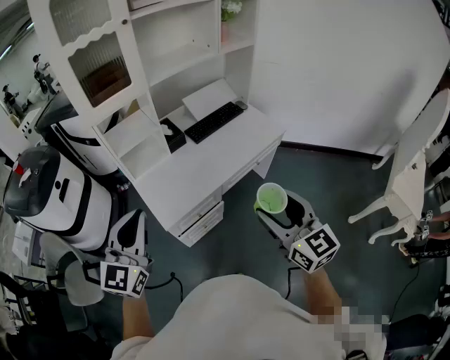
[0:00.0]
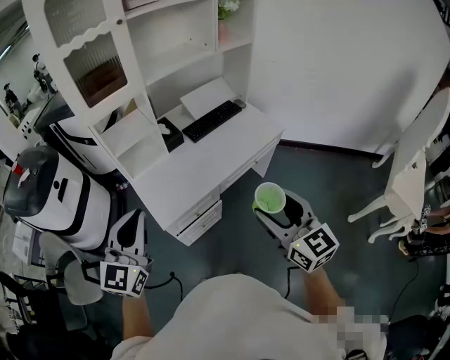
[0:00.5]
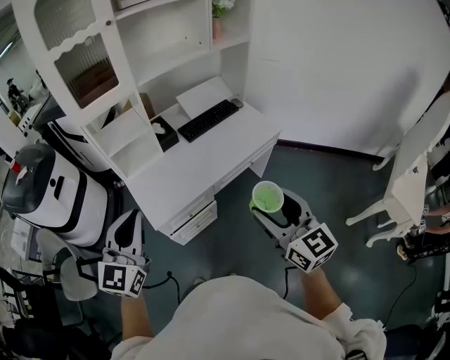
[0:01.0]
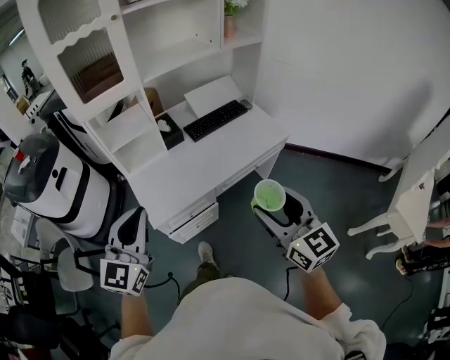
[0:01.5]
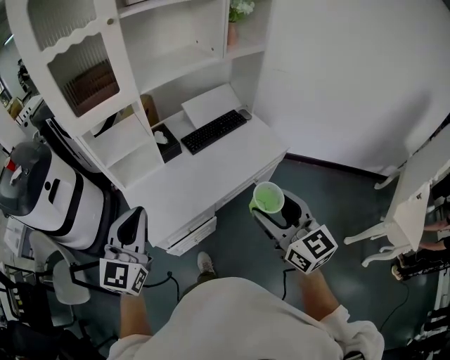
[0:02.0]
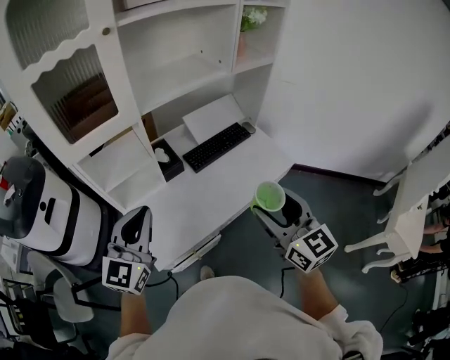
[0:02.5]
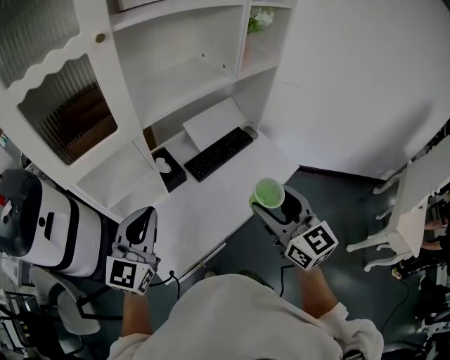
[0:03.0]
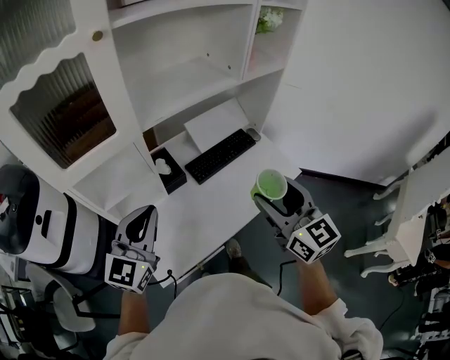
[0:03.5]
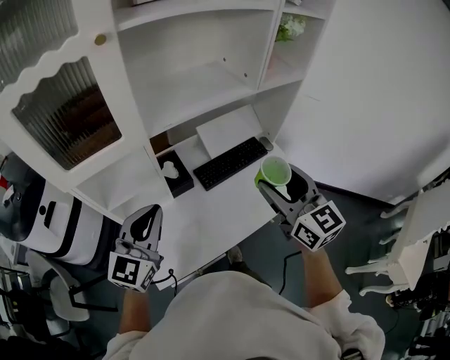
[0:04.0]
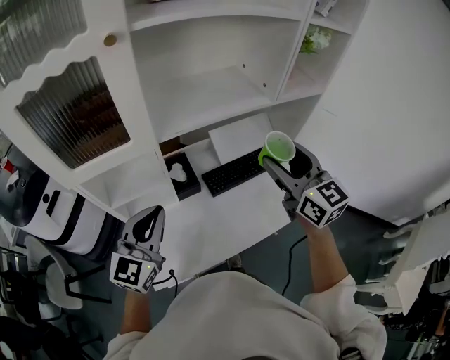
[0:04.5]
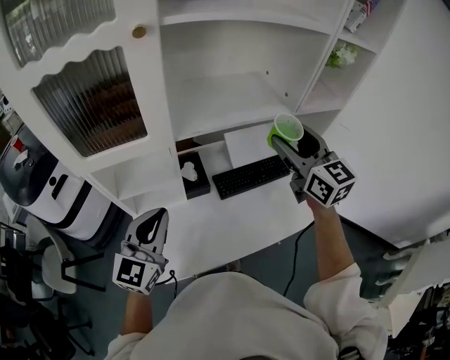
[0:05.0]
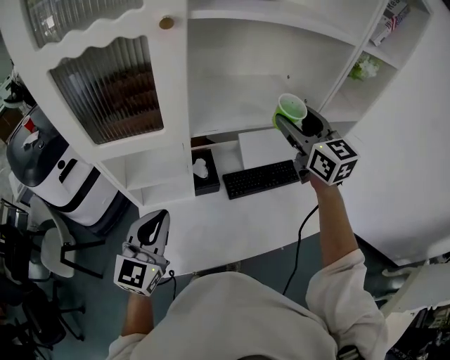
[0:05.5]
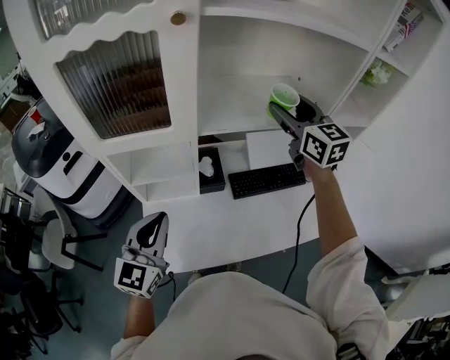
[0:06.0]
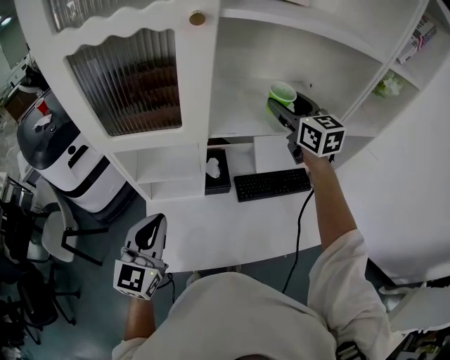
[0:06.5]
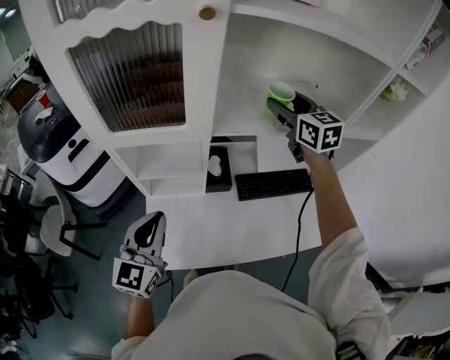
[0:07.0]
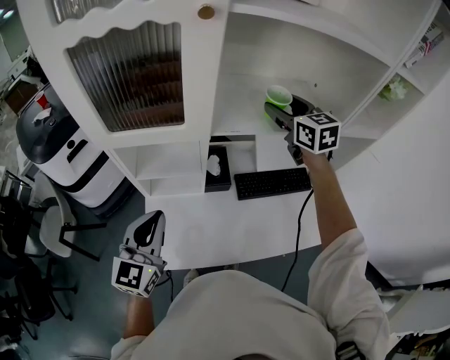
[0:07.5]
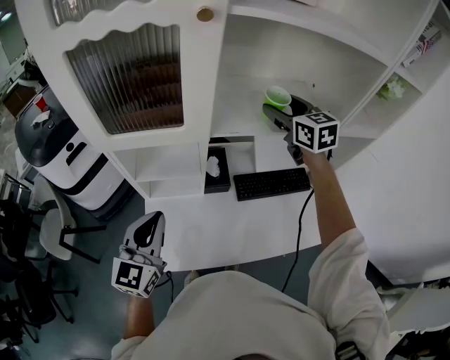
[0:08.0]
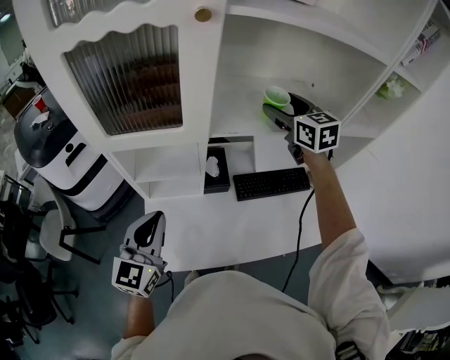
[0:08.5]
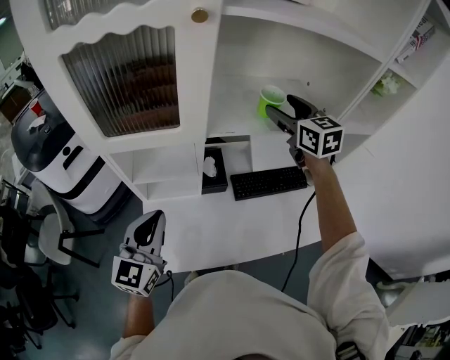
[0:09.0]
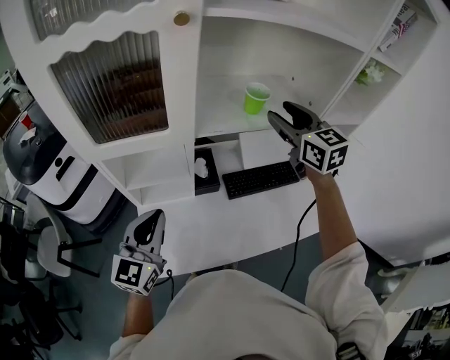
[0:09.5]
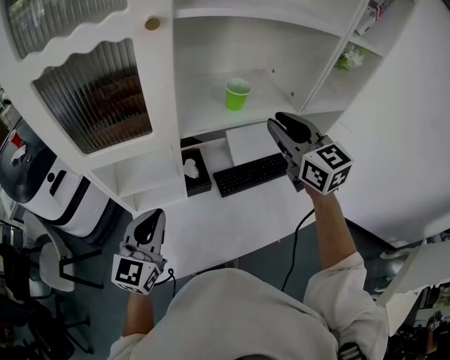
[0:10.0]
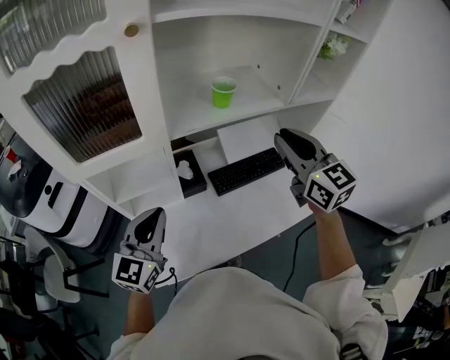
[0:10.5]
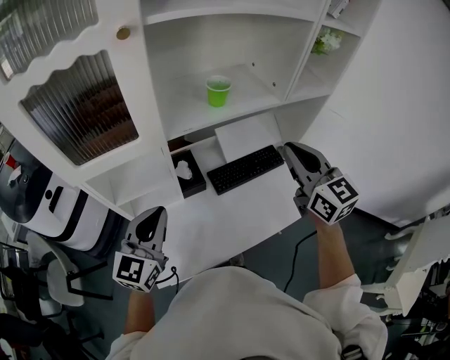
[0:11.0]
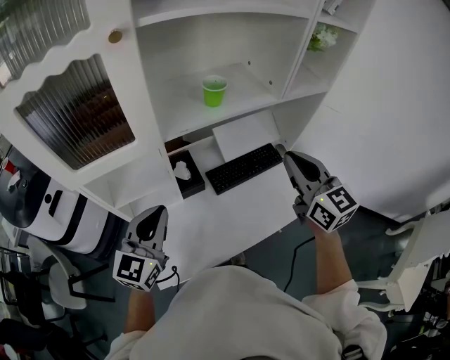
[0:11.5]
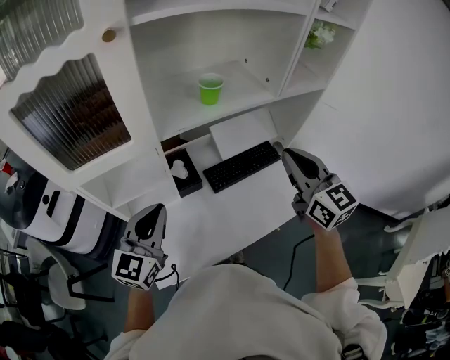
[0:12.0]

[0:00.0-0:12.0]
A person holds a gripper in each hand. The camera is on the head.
0:00.0 to 0:02.0: The grippers both shift forward and to the right by about 15 cm.
0:02.0 to 0:04.0: Both grippers move forward, about 30 cm.
0:04.0 to 0:06.0: The right gripper goes approximately 30 cm forward; the left gripper is displaced to the left by approximately 5 cm, and changes its angle by approximately 20 degrees.
0:06.0 to 0:08.0: The right gripper is displaced forward and downward by about 10 cm.
0:08.0 to 0:10.0: The right gripper moves backward, roughly 15 cm, and closes.
0:10.0 to 0:12.0: The right gripper goes approximately 10 cm backward and to the right.

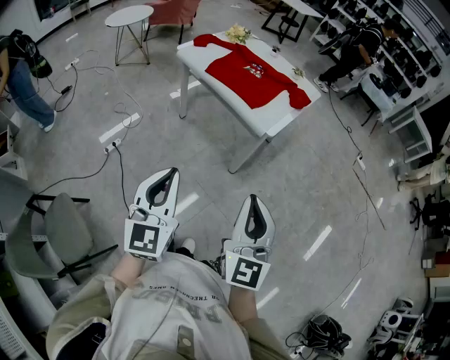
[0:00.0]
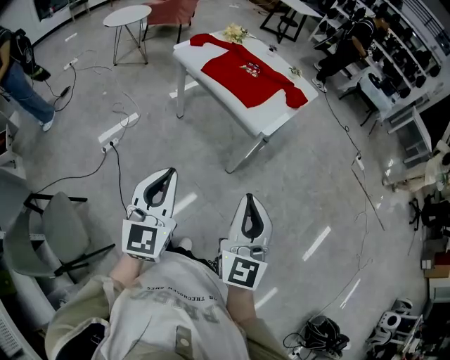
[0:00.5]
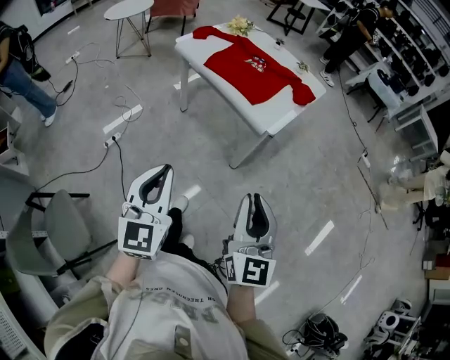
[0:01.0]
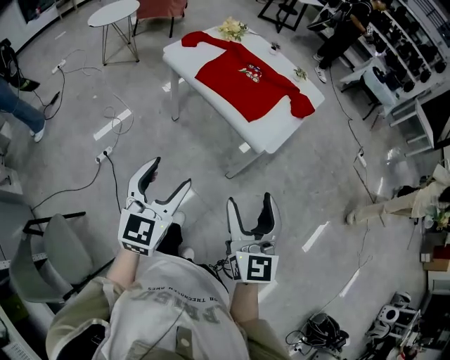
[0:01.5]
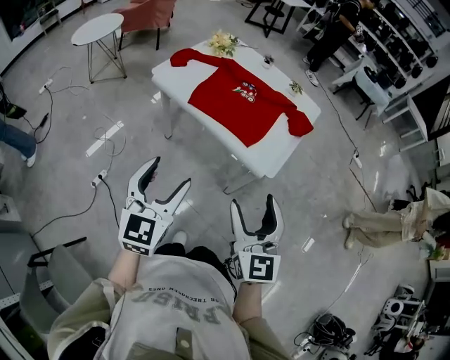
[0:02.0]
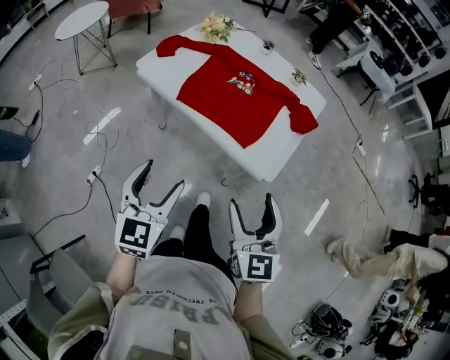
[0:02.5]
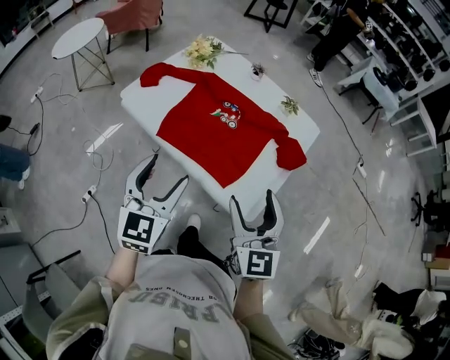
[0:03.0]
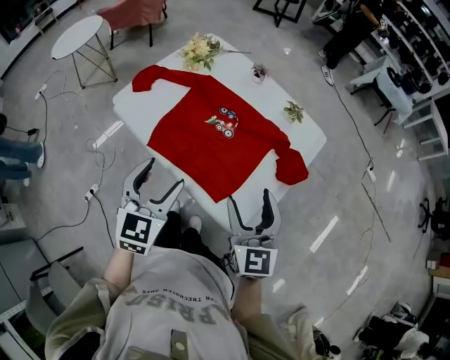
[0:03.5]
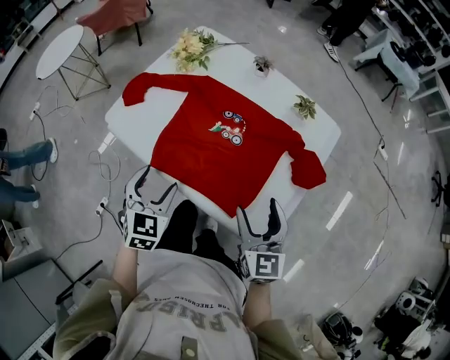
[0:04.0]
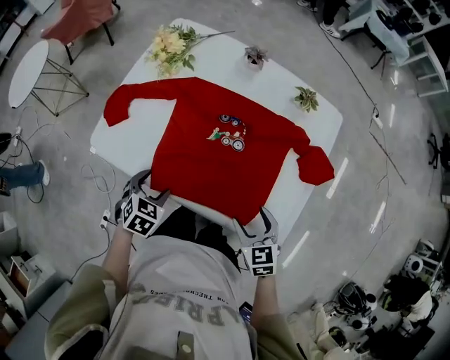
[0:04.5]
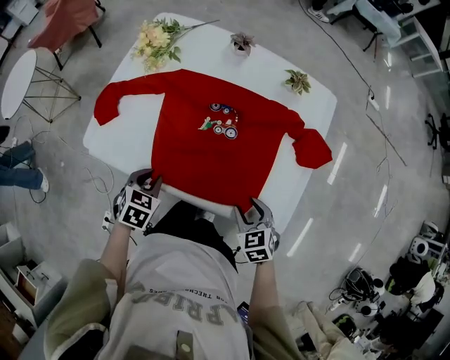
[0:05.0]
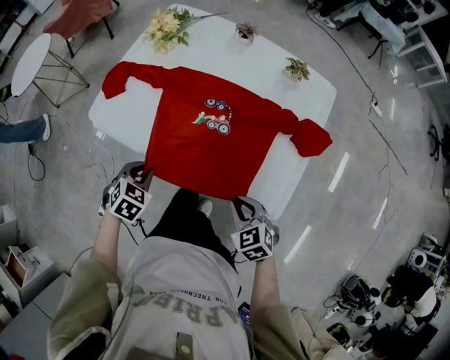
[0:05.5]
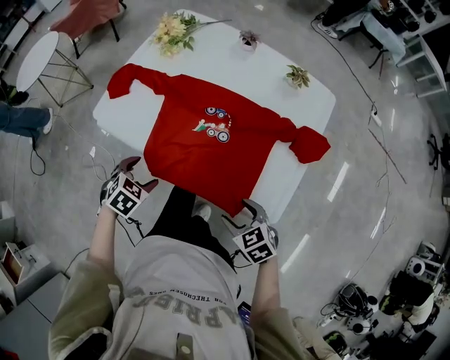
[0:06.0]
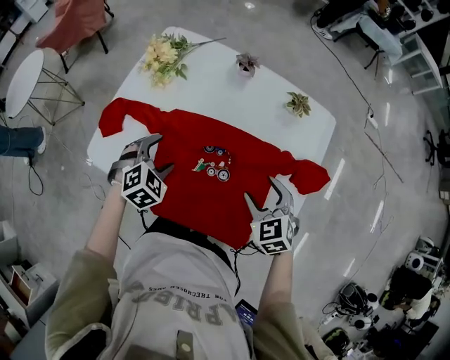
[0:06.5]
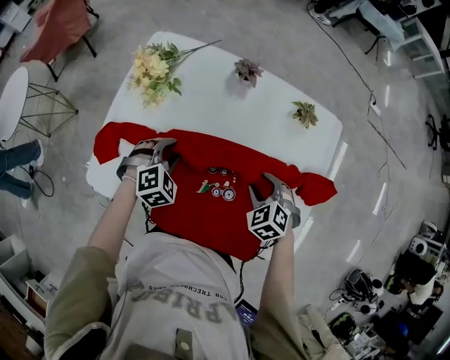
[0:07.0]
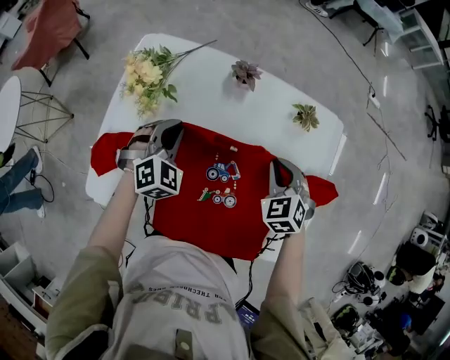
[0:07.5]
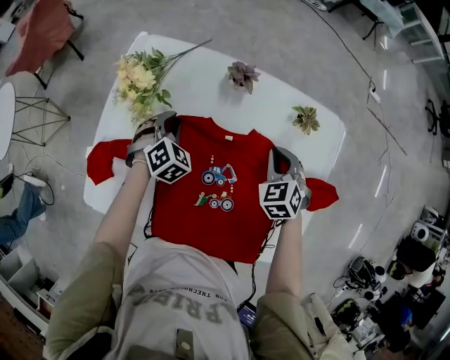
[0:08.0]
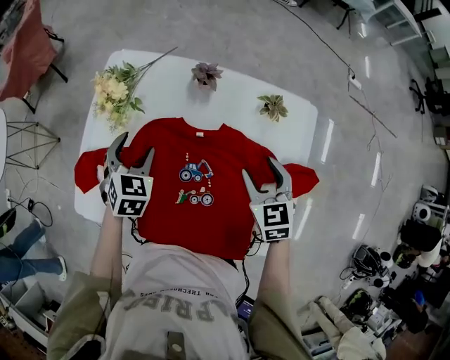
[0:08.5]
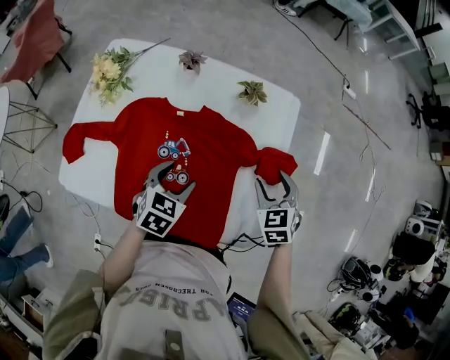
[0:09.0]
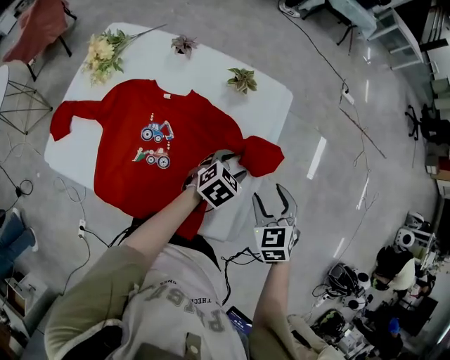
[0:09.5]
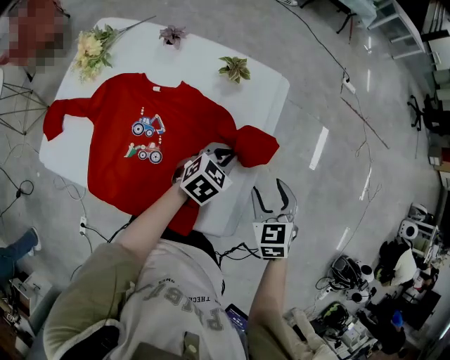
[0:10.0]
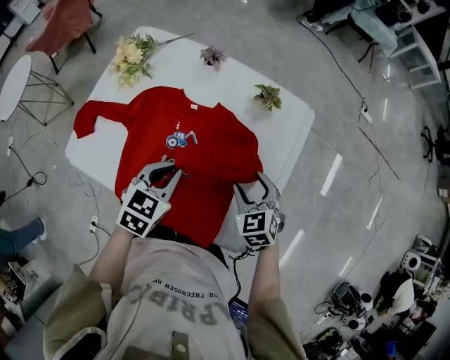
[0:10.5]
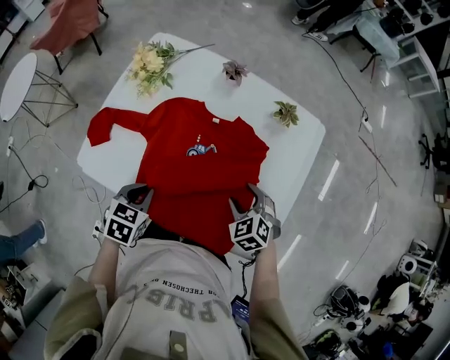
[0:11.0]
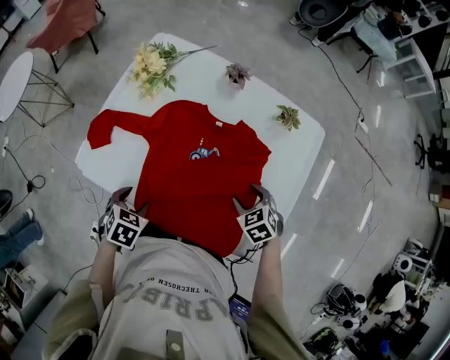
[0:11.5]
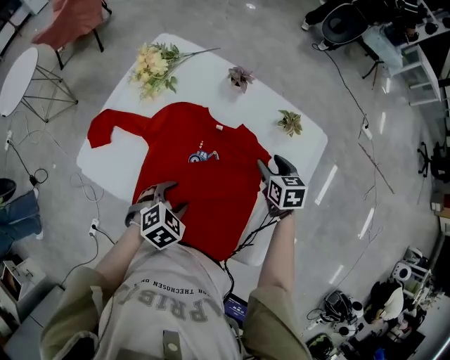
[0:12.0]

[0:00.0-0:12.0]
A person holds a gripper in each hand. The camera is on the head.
0:00.0 to 0:02.0: The two grippers go approximately 25 cm forward. The right gripper opens up; the left gripper opens its fingers.
0:02.0 to 0:04.0: The two grippers go about 35 cm forward and downward. The left gripper changes its angle by some 30 degrees.
0:04.0 to 0:06.0: The right gripper travels downward, backward and to the left by approximately 20 cm, angles its fingers downward, by some 30 degrees, and closes, then opens again. Meanwhile the left gripper goes roughly 15 cm downward and to the left, turns by roughly 40 degrees, and closes, then reopens.
0:06.0 to 0:08.0: The pair of grippers is taken forward, some 40 cm. The right gripper rotates approximately 40 degrees, and closes up; the left gripper changes its angle by some 30 degrees, and closes up.
0:08.0 to 0:10.0: The left gripper changes place by some 50 cm, changes its angle by some 40 degrees, and opens, then closes once more; the right gripper changes place by about 30 cm, and opens up.
0:10.0 to 0:12.0: The left gripper moves about 5 cm upward and comes back, rotates roughly 30 degrees, and opens up, while the right gripper changes place by approximately 25 cm, and changes its angle by roughly 20 degrees.

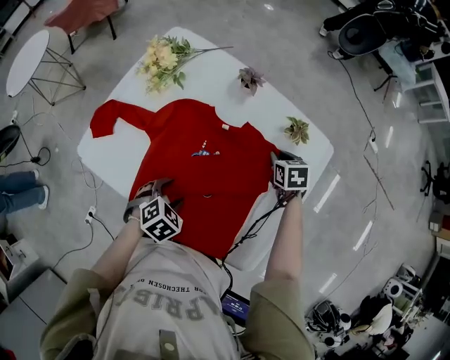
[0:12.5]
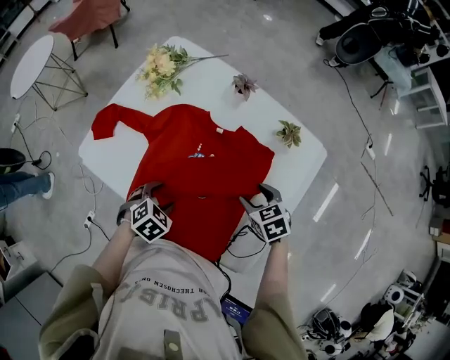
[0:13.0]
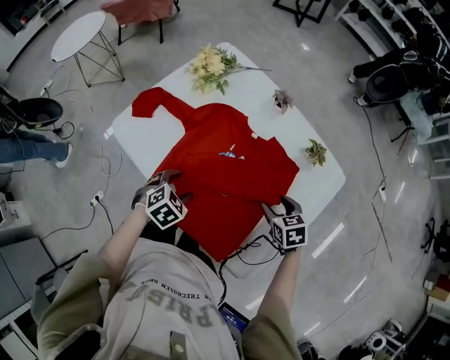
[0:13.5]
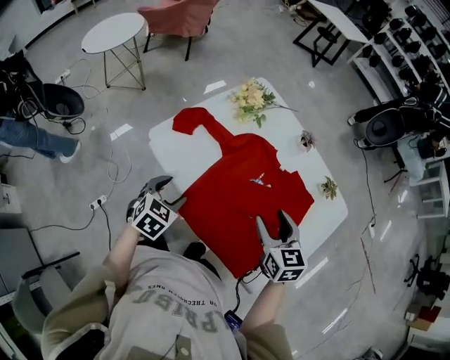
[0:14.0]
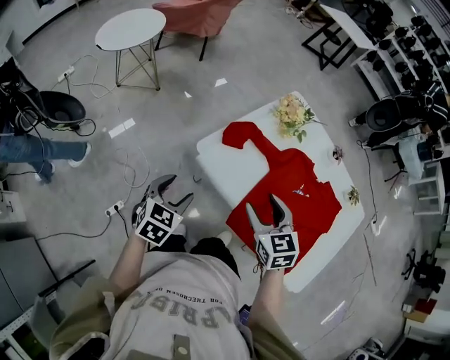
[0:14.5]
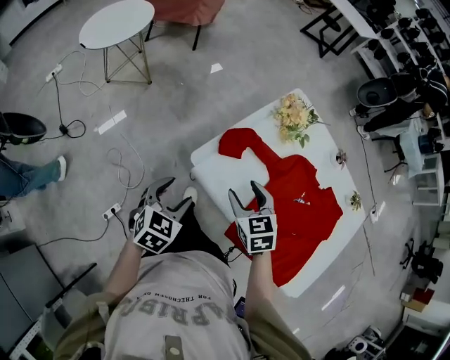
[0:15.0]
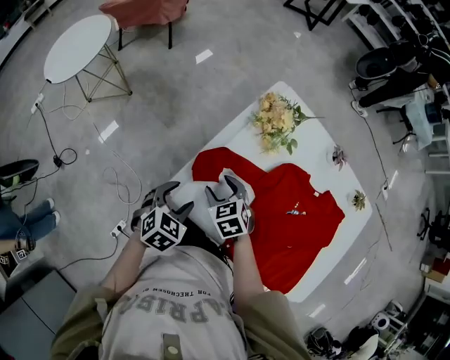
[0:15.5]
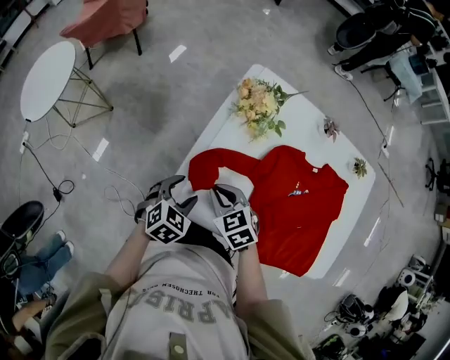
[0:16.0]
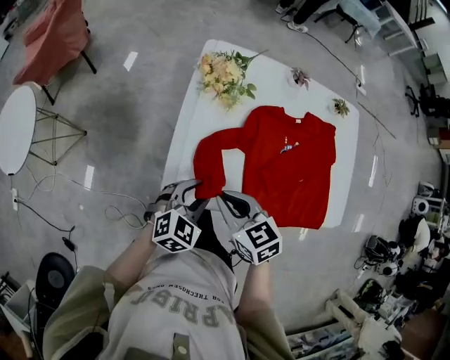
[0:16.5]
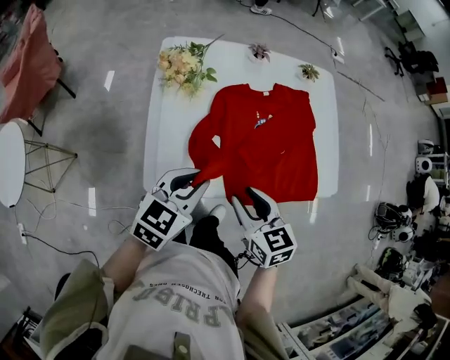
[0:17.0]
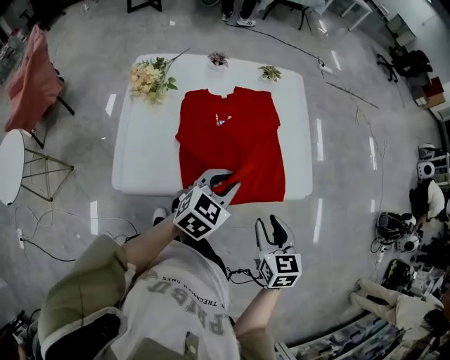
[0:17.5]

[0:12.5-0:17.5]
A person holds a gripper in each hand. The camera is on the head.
0:12.5 to 0:15.0: The right gripper moves approximately 60 cm, changes its angle by approximately 40 degrees, and opens; the left gripper changes place by approximately 40 cm, and swivels about 40 degrees.
0:15.0 to 0:17.5: The left gripper ends up some 35 cm from where it was, rotates some 60 degrees, and closes its fingers; the right gripper shifts by approximately 35 cm, and swivels approximately 60 degrees.
